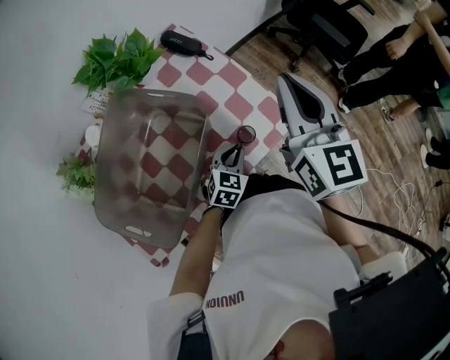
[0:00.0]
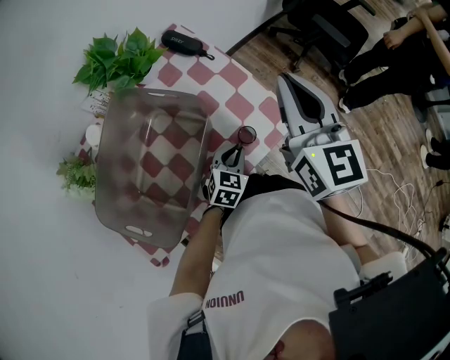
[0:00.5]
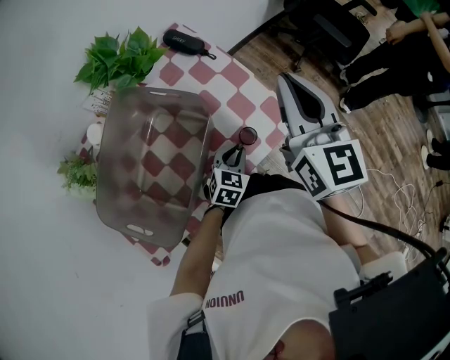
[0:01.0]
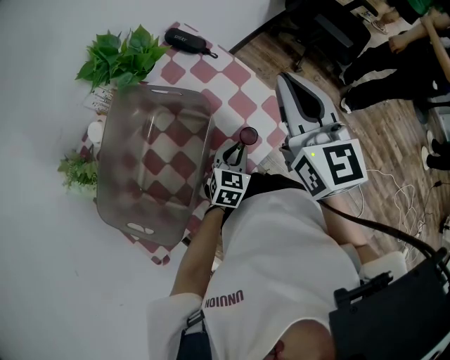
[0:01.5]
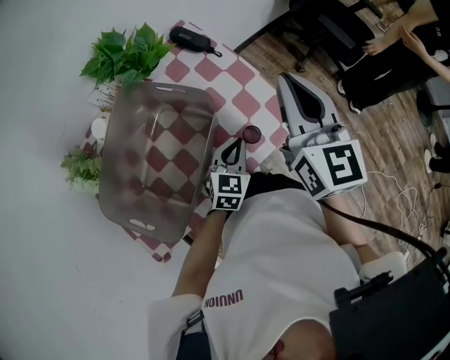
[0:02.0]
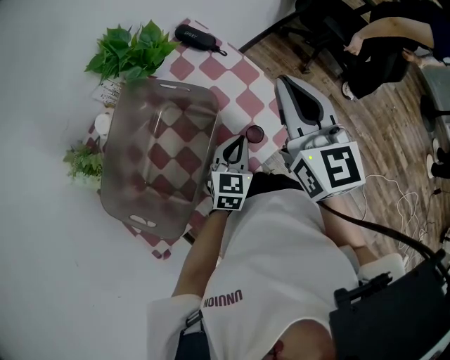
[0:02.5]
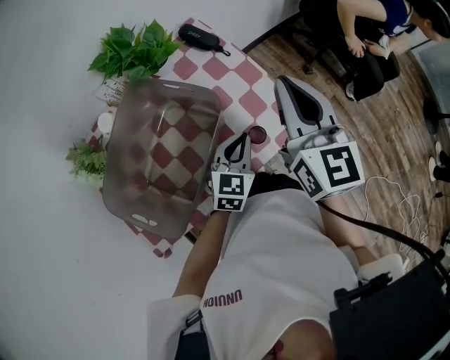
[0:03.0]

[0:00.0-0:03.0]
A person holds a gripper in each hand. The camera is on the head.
0:00.0 to 0:01.5: Both grippers stay put.
0:01.5 to 0:03.0: The left gripper shifts about 10 cm upward.

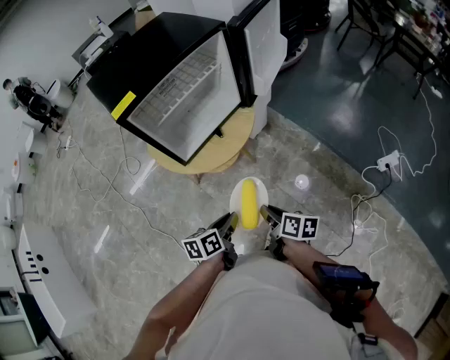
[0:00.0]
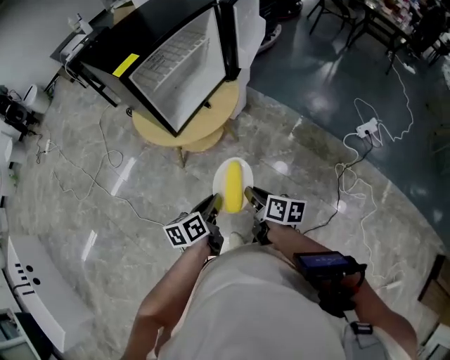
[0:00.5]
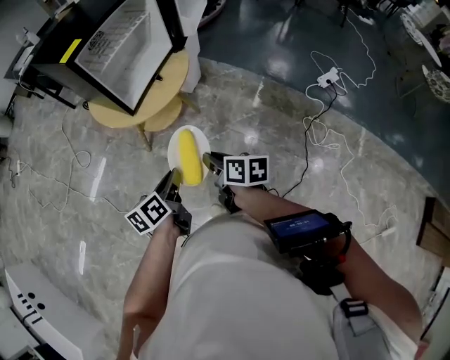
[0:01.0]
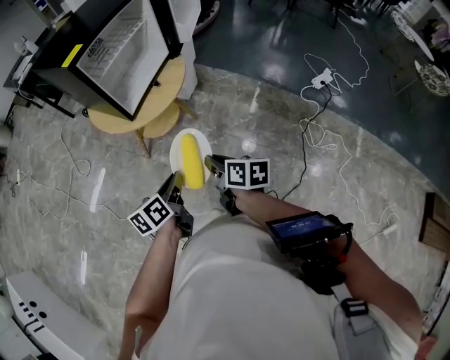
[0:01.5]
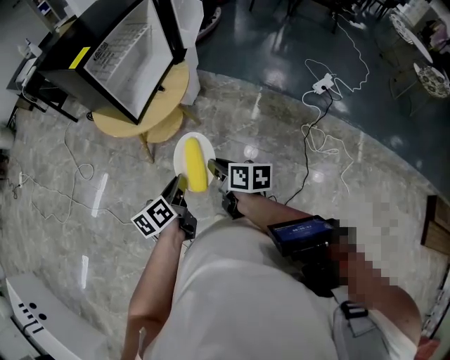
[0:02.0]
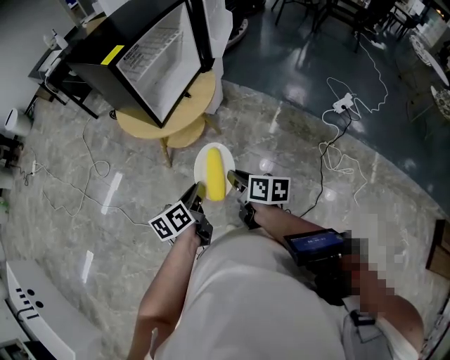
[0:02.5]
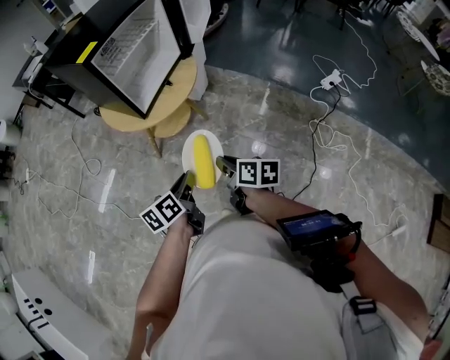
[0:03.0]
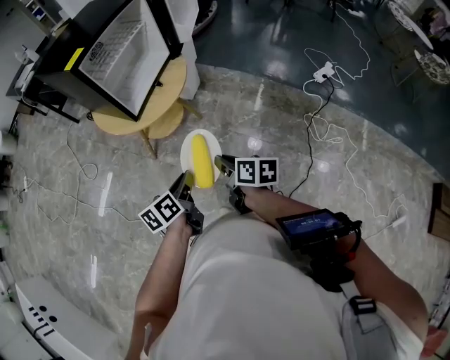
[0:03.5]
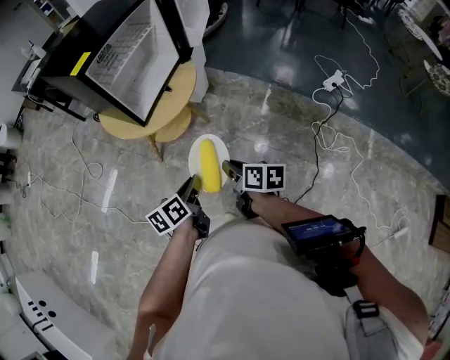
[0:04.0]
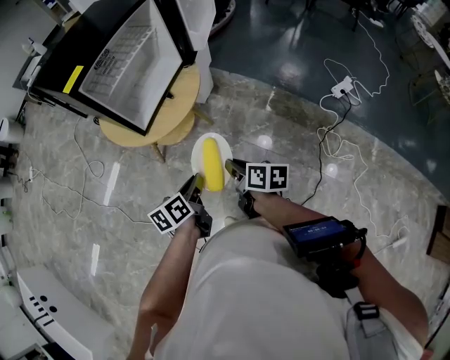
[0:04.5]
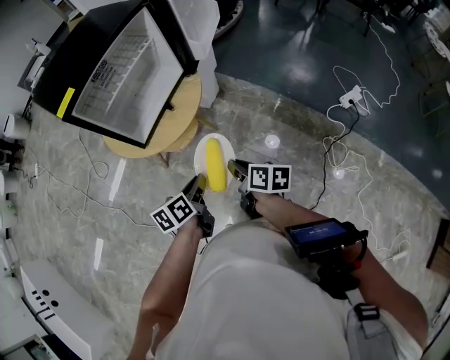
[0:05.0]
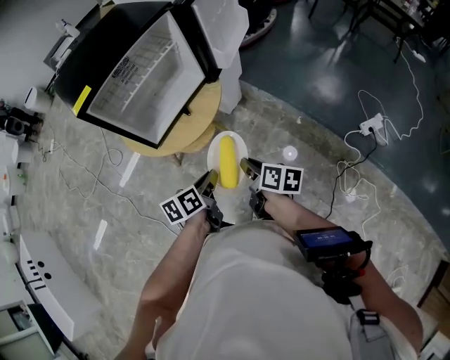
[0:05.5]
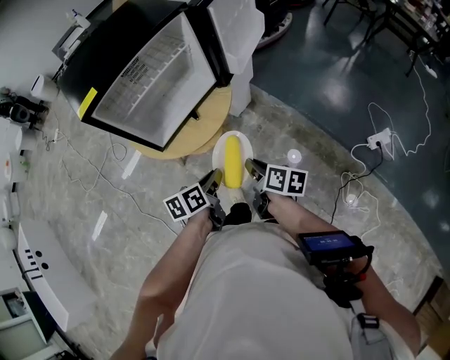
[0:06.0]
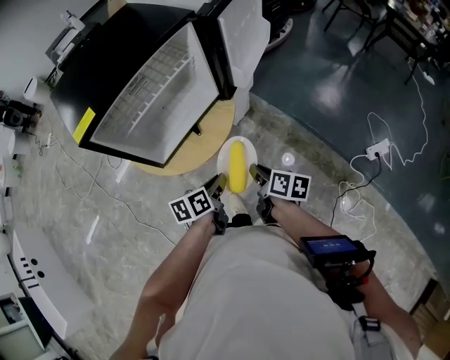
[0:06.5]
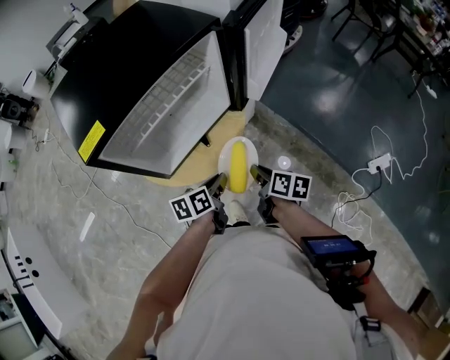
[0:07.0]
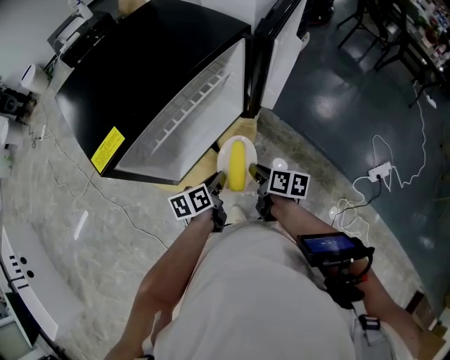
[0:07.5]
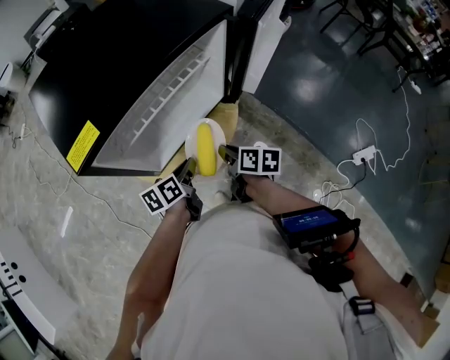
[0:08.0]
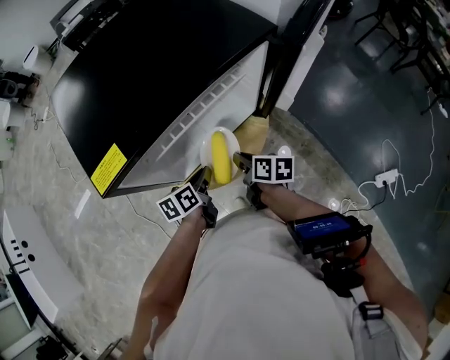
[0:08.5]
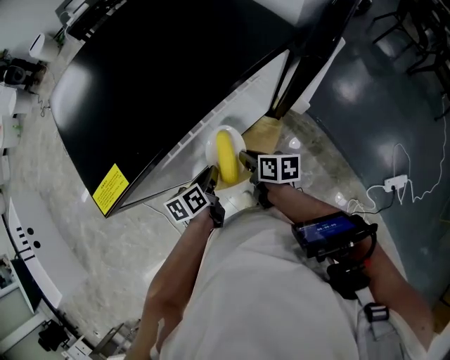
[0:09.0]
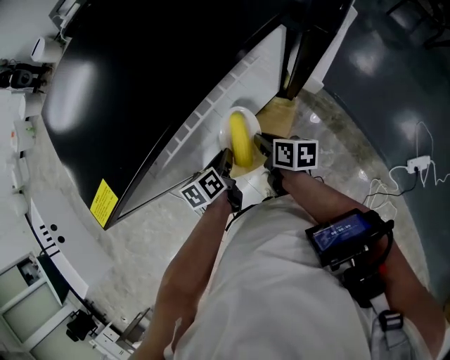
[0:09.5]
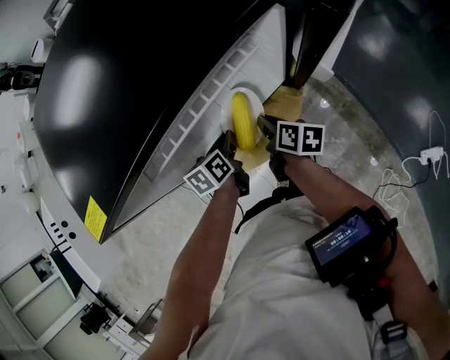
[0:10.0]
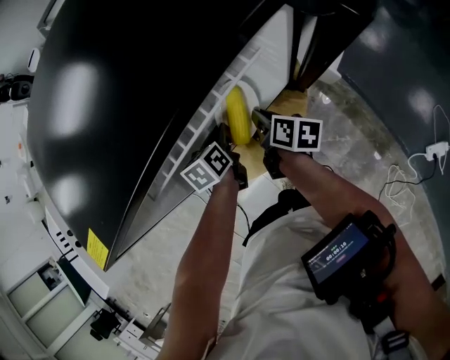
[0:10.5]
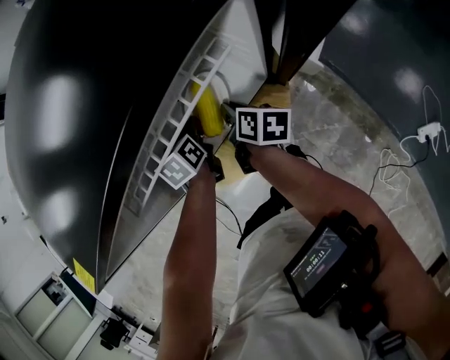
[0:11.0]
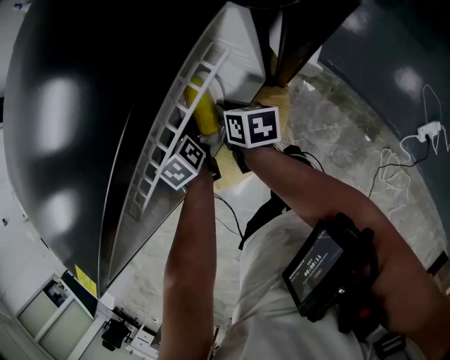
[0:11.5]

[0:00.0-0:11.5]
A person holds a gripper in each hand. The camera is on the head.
0:00.0 to 0:02.0: Both grippers move backward and to the left, approximately 15 cm.
0:02.0 to 0:04.0: The grippers make only small movements.
0:04.0 to 0:06.0: Both grippers travel together forward and to the right, some 25 cm.
0:06.0 to 0:07.5: Both grippers travel together forward and to the left, approximately 20 cm.
0:07.5 to 0:09.5: Both grippers move forward, to the left and downward, roughly 15 cm.
0:09.5 to 0:11.5: Both grippers move forward, about 15 cm. The left gripper turns by roughly 30 degrees.

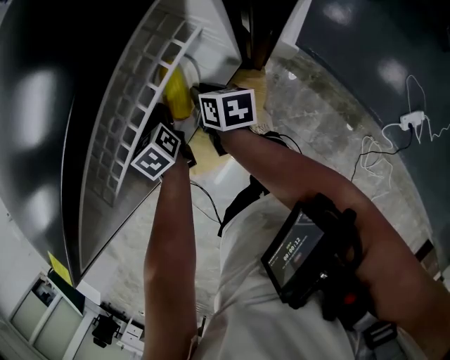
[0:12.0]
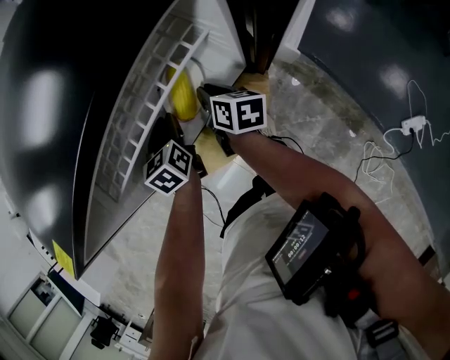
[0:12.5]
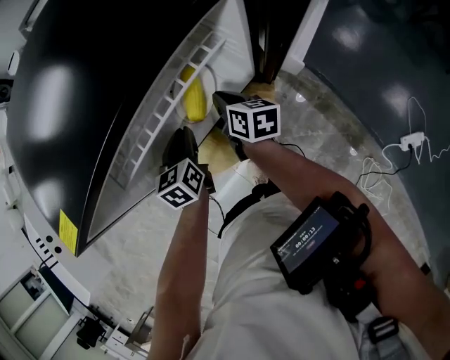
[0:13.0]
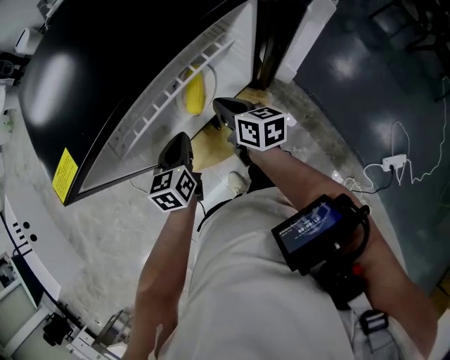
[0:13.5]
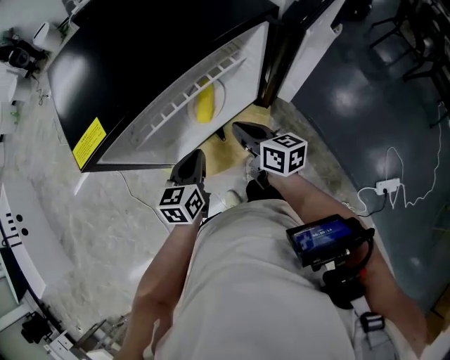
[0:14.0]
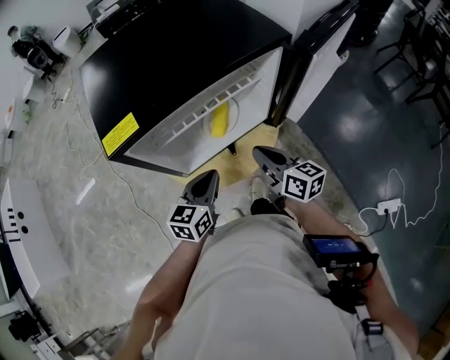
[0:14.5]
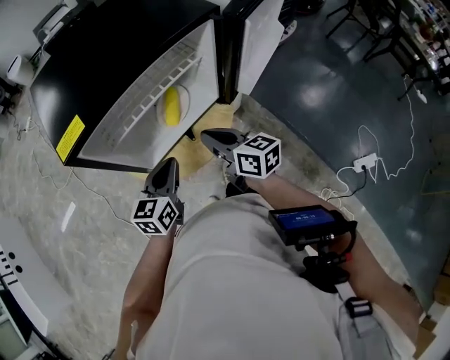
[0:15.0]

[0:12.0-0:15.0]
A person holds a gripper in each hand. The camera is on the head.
0:12.0 to 0:13.5: The right gripper heads upward and backward, covering approximately 10 cm, and swivels about 20 degrees. Meanwhile the left gripper moves backward and upward, about 15 cm.
0:13.5 to 0:15.0: The grippers both shift backward and upward by roughly 15 cm.

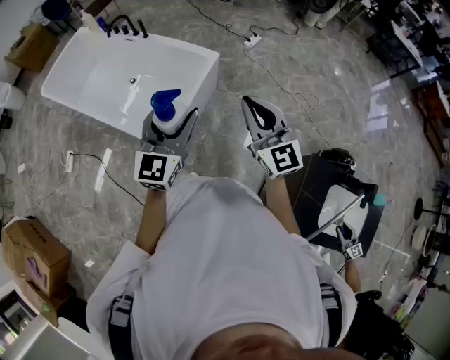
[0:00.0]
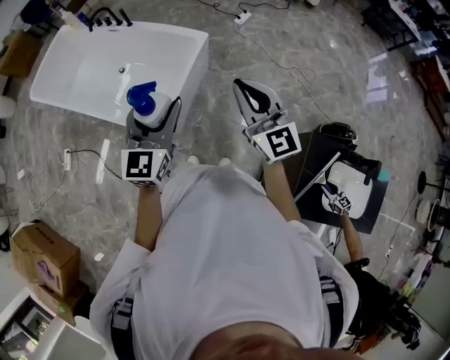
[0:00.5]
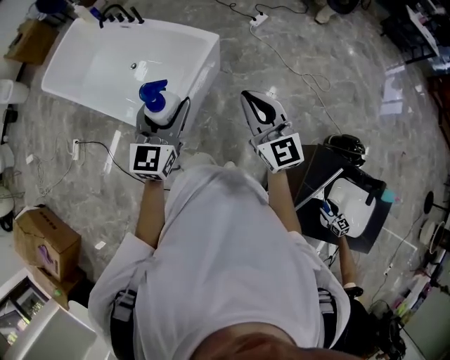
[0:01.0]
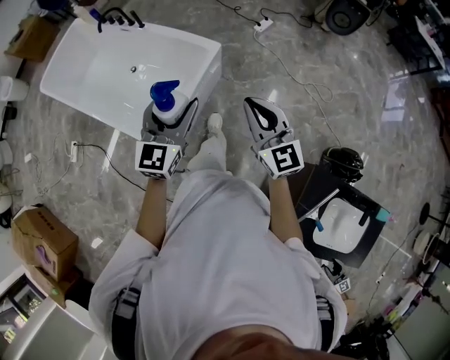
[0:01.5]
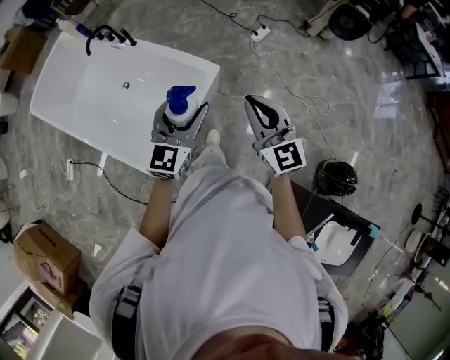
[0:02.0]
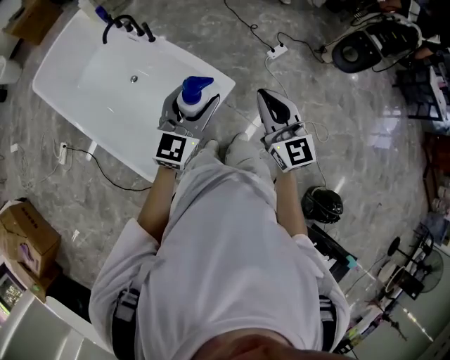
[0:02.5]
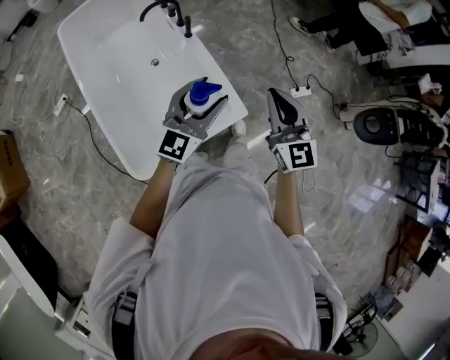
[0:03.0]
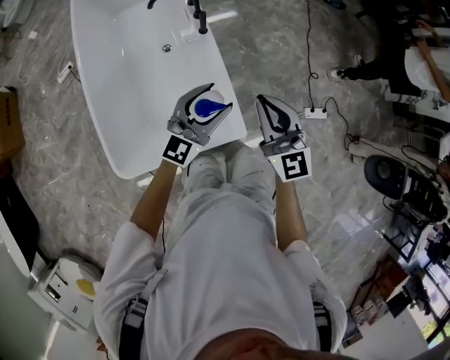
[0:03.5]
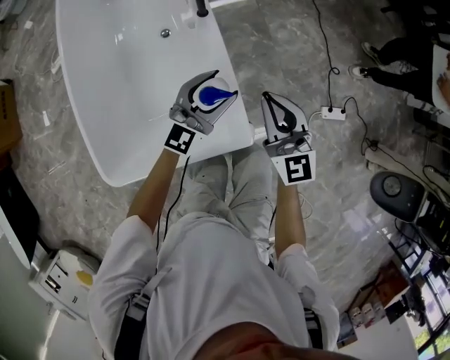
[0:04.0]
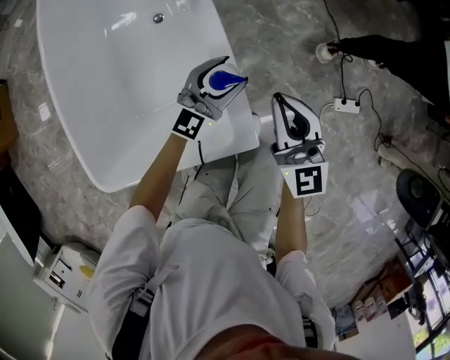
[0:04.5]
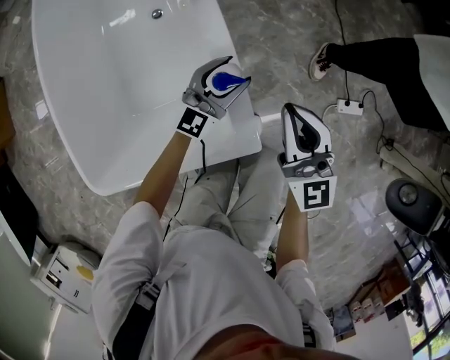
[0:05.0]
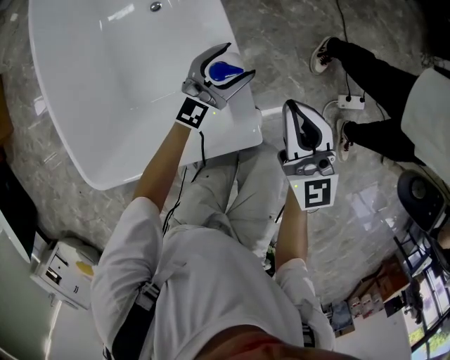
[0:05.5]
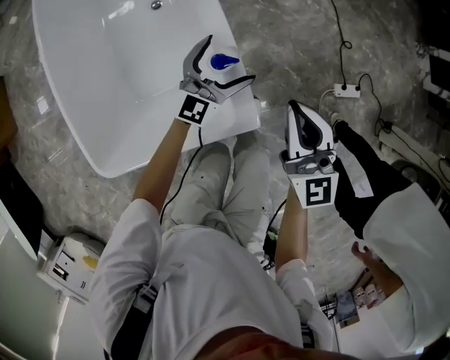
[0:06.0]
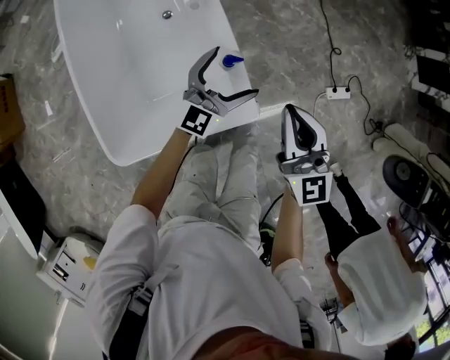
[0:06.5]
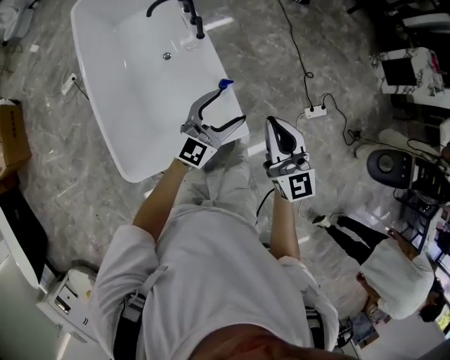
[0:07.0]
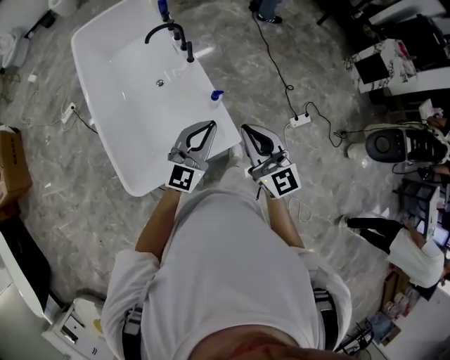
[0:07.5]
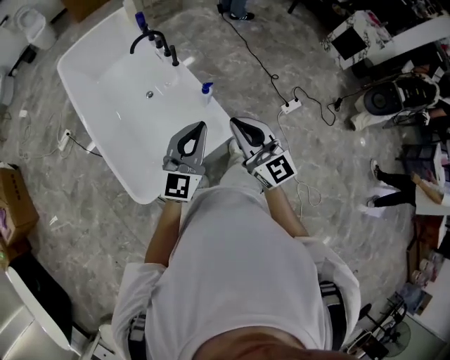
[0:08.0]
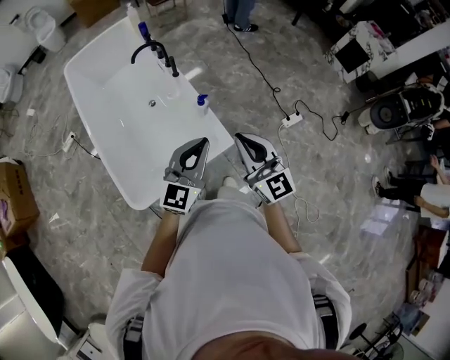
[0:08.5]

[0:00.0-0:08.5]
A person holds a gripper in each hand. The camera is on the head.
0:00.0 to 0:02.0: The grippers both shift forward by about 30 cm.
0:02.0 to 0:04.0: The two grippers travel together, some 40 cm. The right gripper turns by approximately 40 degrees. The left gripper swivels roughly 30 degrees.
0:04.0 to 0:06.5: The left gripper moves roughly 20 cm downward and comes back, and opens, while the right gripper travels backward and upward by roughly 10 cm.
0:06.5 to 0:08.5: The right gripper shifts roughly 30 cm backward and upward. The left gripper is displaced upward and backward by about 40 cm, and closes its fingers.
